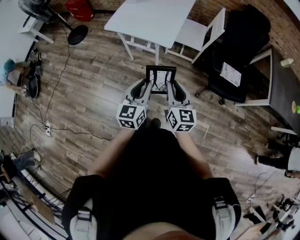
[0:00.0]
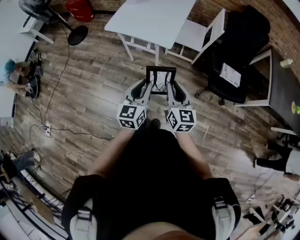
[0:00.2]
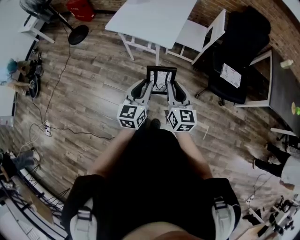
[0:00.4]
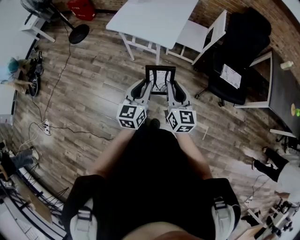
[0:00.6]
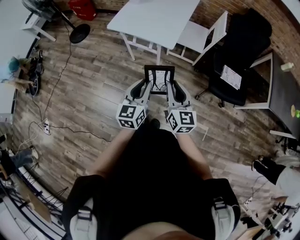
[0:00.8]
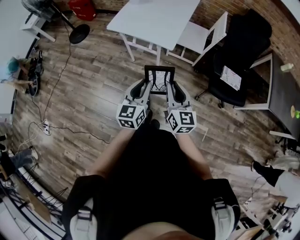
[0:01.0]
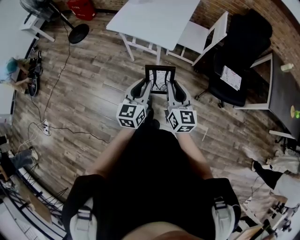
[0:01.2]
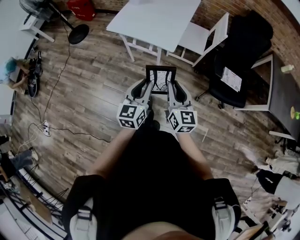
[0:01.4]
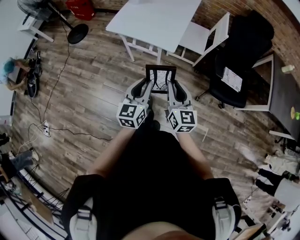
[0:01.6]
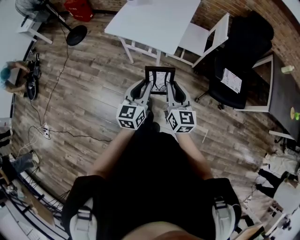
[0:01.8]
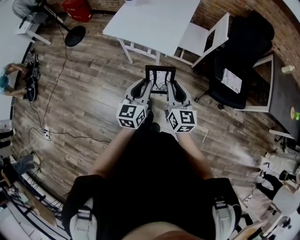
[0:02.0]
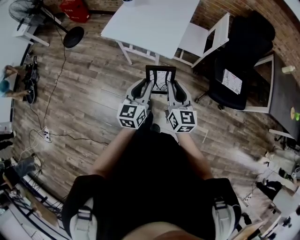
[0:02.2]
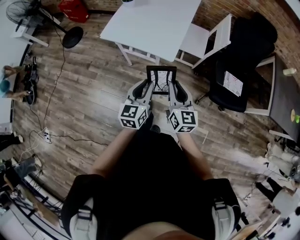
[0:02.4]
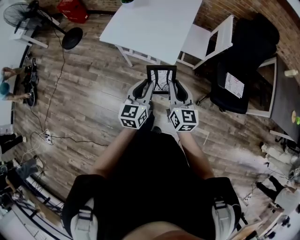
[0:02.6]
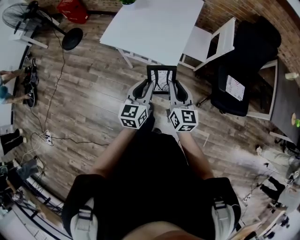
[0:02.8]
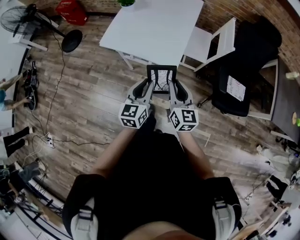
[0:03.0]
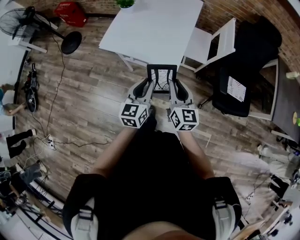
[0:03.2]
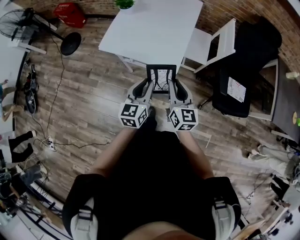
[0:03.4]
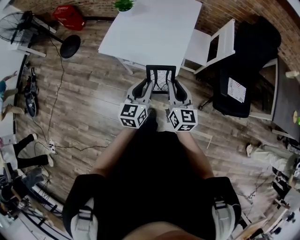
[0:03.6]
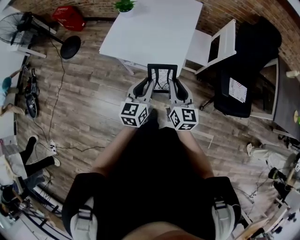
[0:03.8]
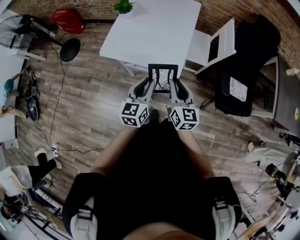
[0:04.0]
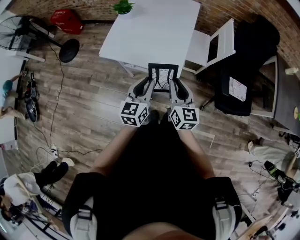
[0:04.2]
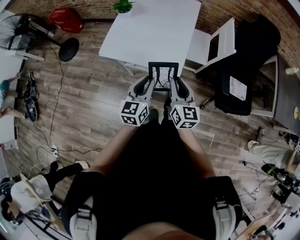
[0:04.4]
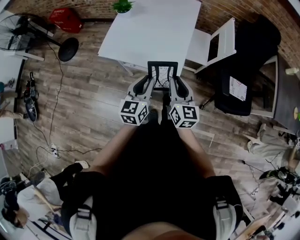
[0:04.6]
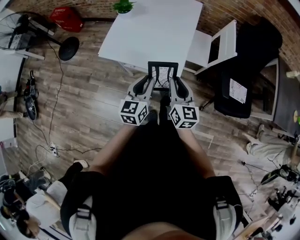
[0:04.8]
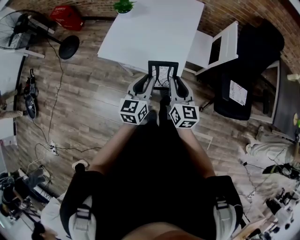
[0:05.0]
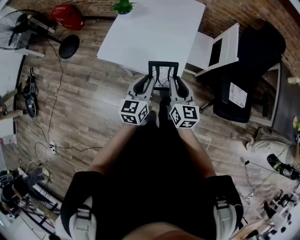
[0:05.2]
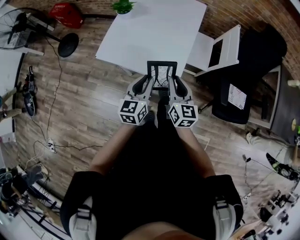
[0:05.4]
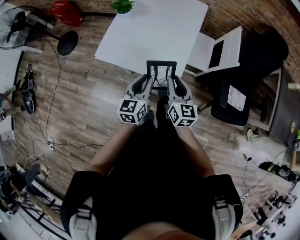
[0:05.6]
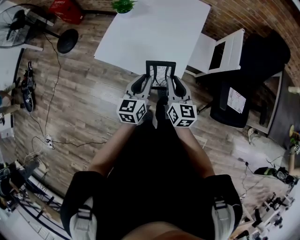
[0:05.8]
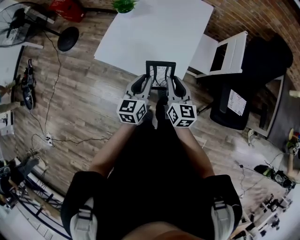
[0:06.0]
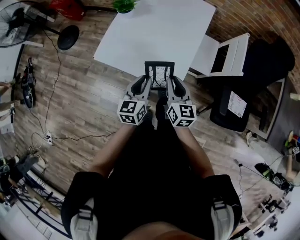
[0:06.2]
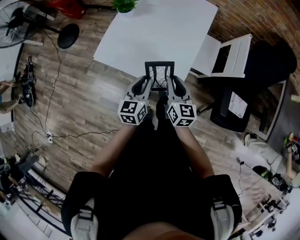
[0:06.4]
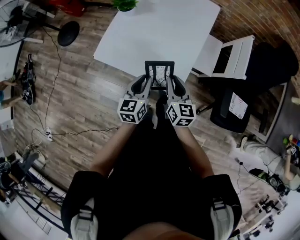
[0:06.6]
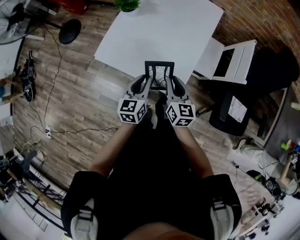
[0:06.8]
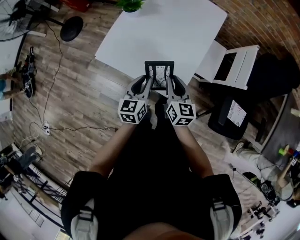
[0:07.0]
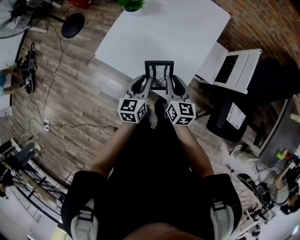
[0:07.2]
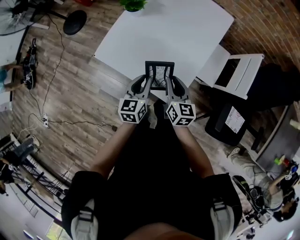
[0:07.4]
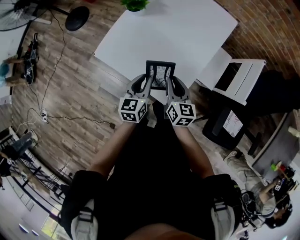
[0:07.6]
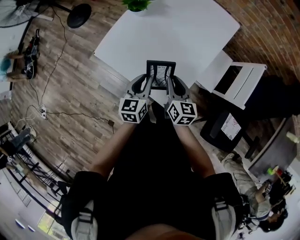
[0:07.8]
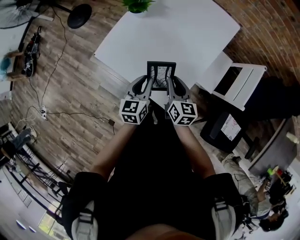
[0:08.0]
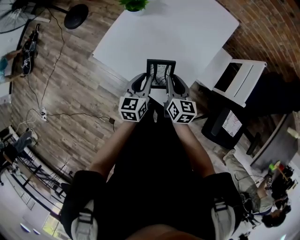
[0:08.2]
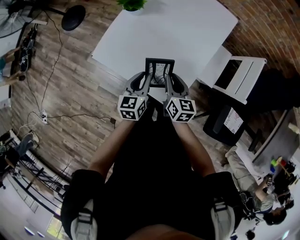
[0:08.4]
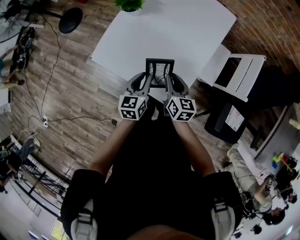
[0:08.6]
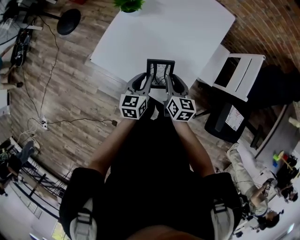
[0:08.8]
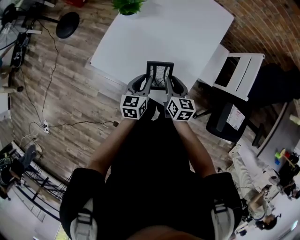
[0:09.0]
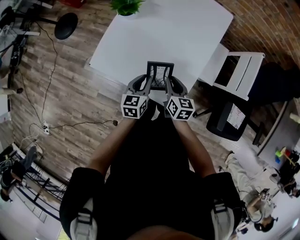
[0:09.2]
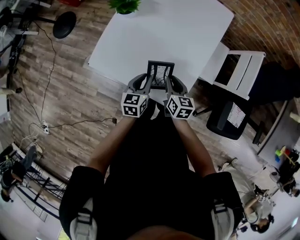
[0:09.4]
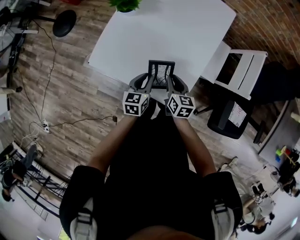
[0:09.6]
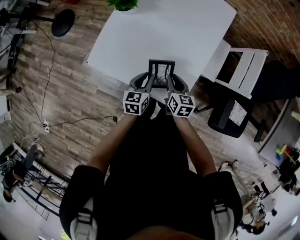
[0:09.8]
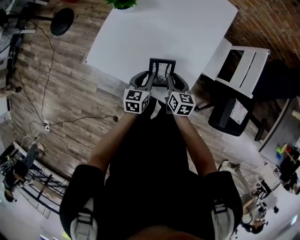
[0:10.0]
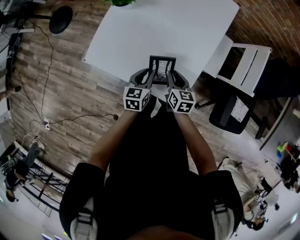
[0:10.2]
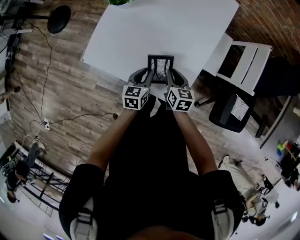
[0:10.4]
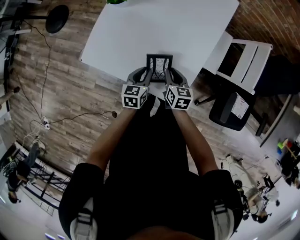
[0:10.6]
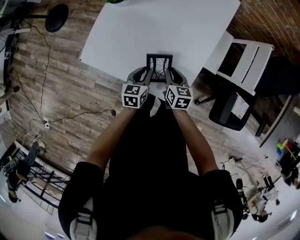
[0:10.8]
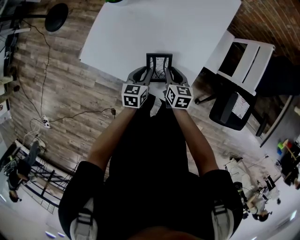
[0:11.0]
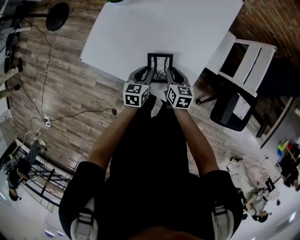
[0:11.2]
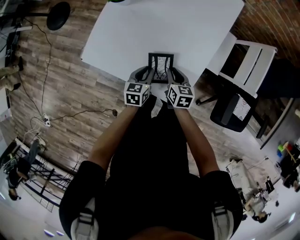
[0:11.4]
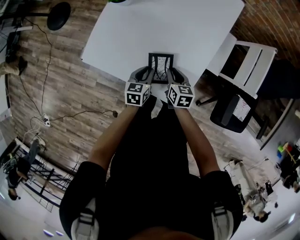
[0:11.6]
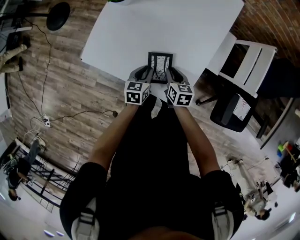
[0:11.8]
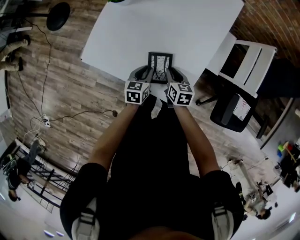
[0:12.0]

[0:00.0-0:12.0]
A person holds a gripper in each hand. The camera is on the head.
0:00.0 to 0:01.6: The grippers stay close to where they were, moving slightly.
0:01.6 to 0:03.0: Both grippers travel together forward, some 20 cm.
0:03.0 to 0:04.4: Both grippers travel together forward, roughly 5 cm.
0:04.4 to 0:06.0: Both grippers move forward, some 15 cm.
0:06.0 to 0:07.6: Both grippers move forward and downward, approximately 15 cm.
0:07.6 to 0:09.0: The left gripper ends up about 5 cm from where it was. Meanwhile the right gripper moves downward, about 5 cm.
0:09.0 to 0:10.4: The grippers both shift downward by roughly 10 cm.
0:10.4 to 0:12.0: The grippers both shift downward by roughly 5 cm.

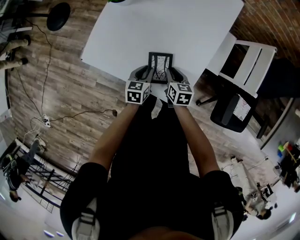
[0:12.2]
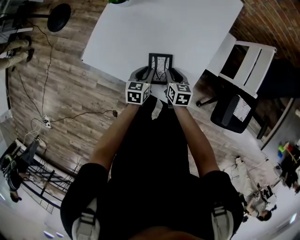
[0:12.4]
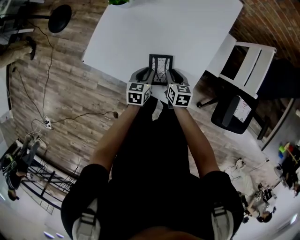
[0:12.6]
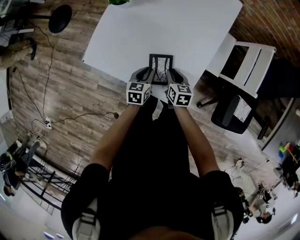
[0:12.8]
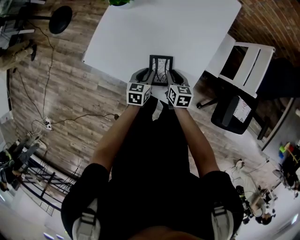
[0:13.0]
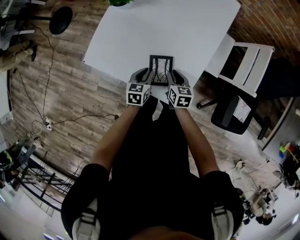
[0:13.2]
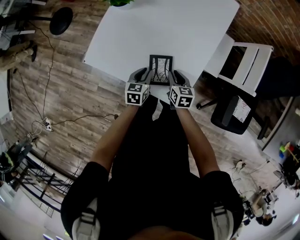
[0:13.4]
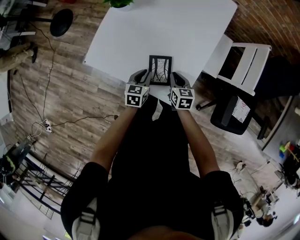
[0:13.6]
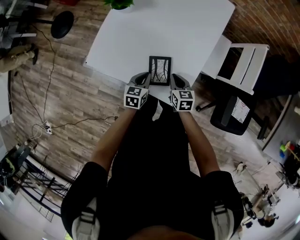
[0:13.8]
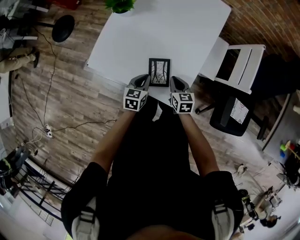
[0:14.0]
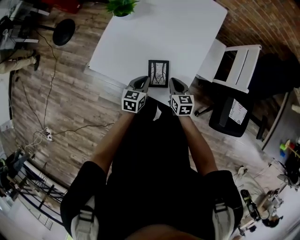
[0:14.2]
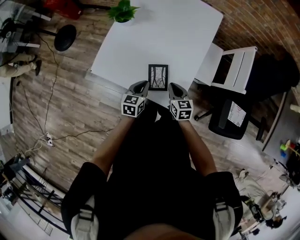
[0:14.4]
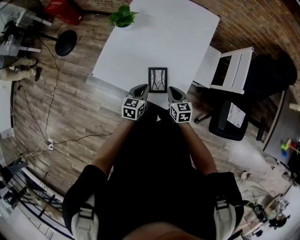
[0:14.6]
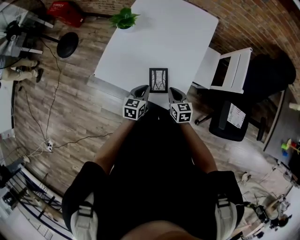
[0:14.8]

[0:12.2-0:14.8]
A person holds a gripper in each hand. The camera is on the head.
0:12.2 to 0:13.4: The grippers make only small movements.
0:13.4 to 0:14.8: Both grippers travel together upward and backward, roughly 10 cm.

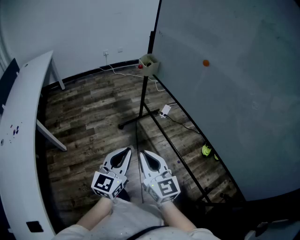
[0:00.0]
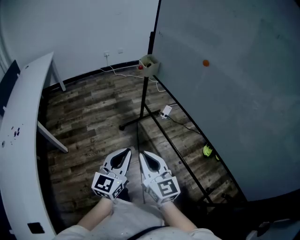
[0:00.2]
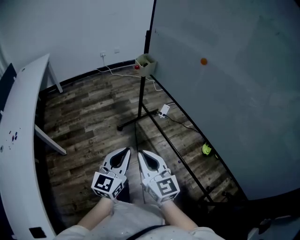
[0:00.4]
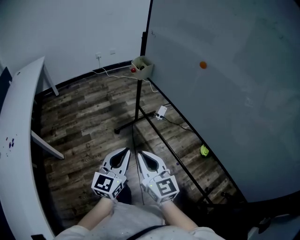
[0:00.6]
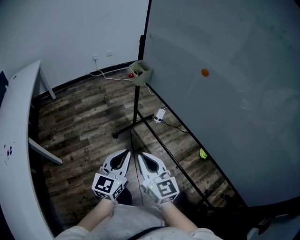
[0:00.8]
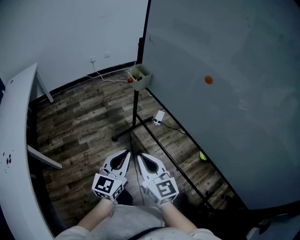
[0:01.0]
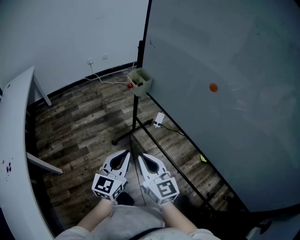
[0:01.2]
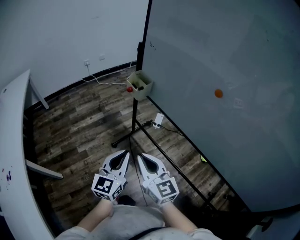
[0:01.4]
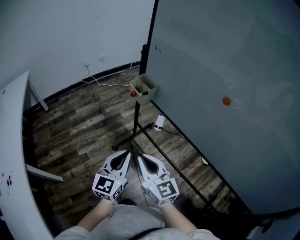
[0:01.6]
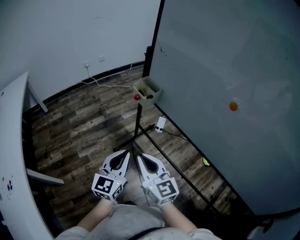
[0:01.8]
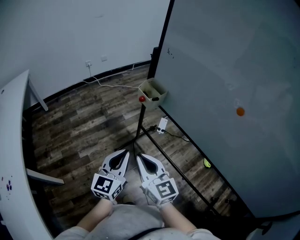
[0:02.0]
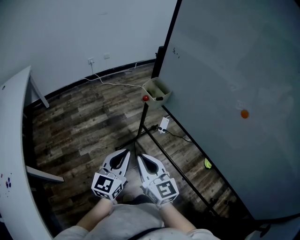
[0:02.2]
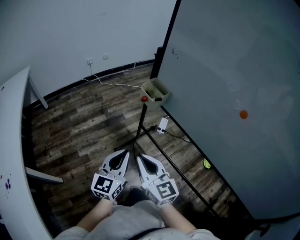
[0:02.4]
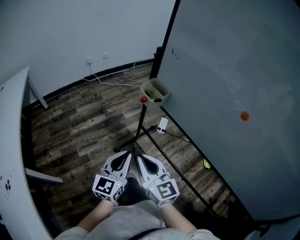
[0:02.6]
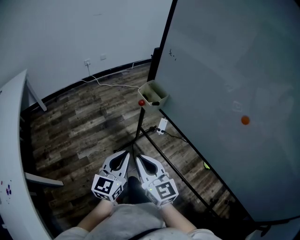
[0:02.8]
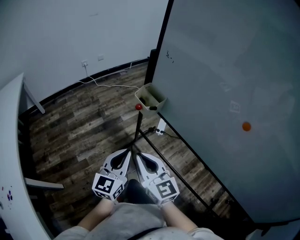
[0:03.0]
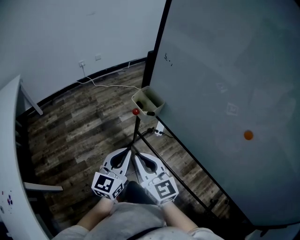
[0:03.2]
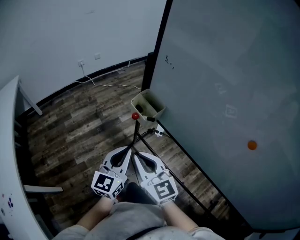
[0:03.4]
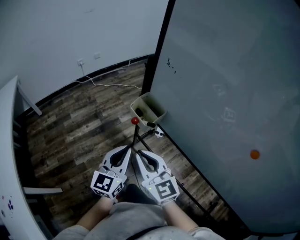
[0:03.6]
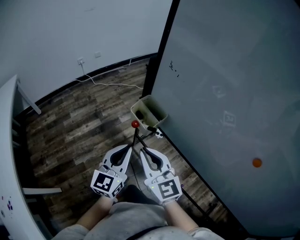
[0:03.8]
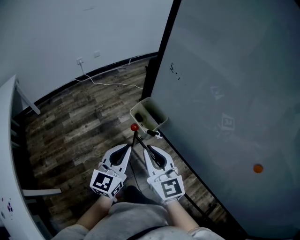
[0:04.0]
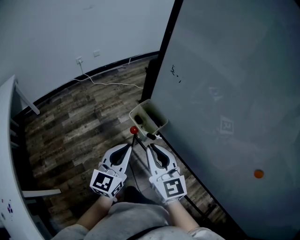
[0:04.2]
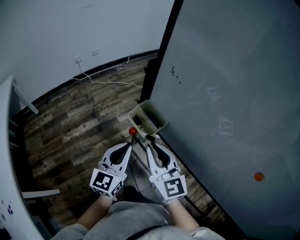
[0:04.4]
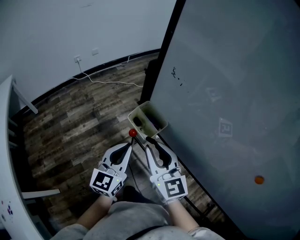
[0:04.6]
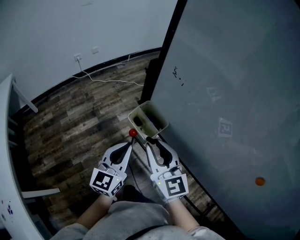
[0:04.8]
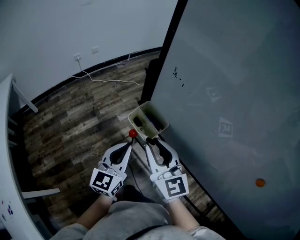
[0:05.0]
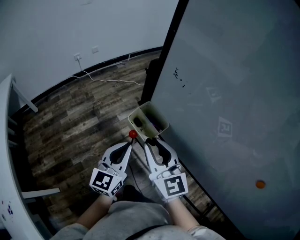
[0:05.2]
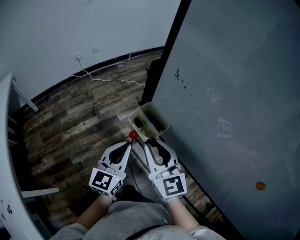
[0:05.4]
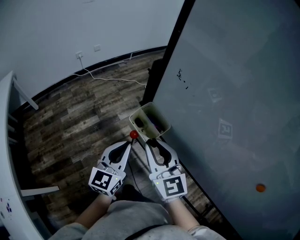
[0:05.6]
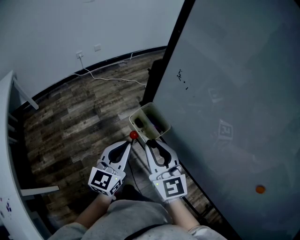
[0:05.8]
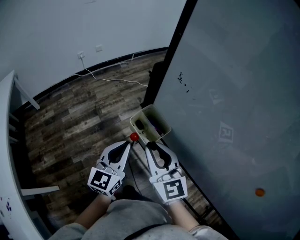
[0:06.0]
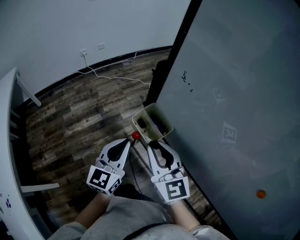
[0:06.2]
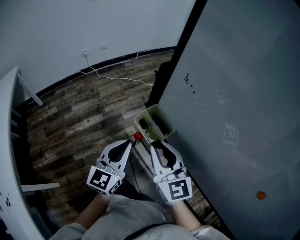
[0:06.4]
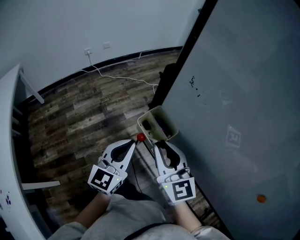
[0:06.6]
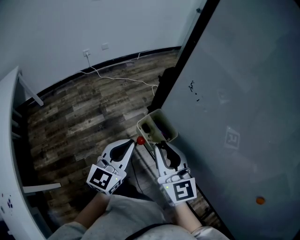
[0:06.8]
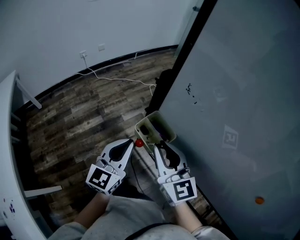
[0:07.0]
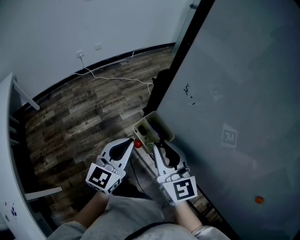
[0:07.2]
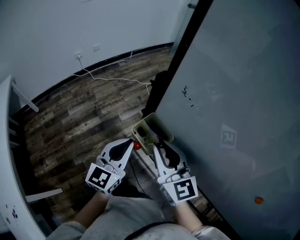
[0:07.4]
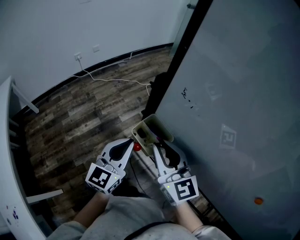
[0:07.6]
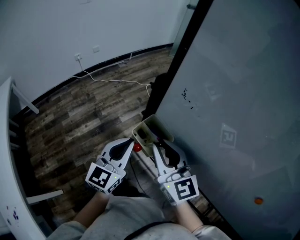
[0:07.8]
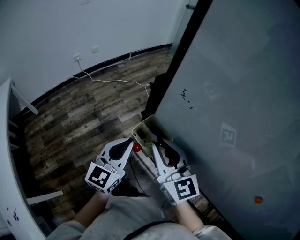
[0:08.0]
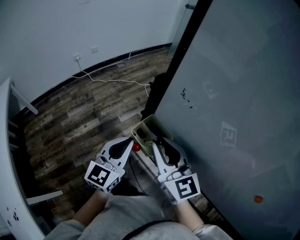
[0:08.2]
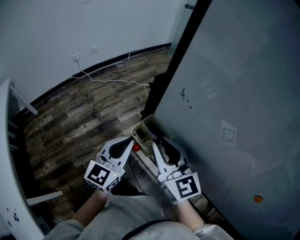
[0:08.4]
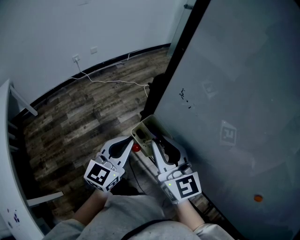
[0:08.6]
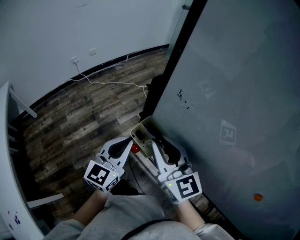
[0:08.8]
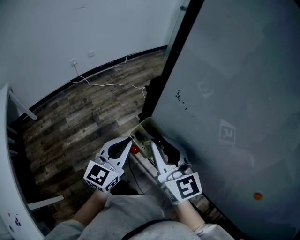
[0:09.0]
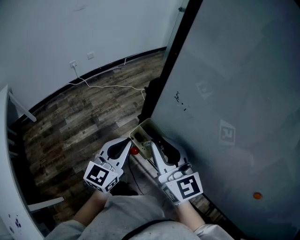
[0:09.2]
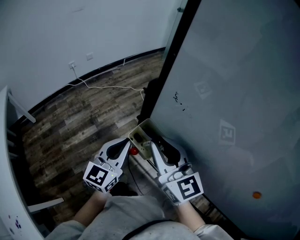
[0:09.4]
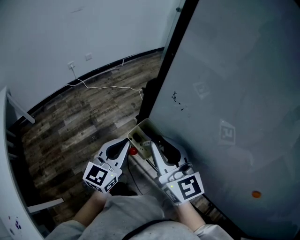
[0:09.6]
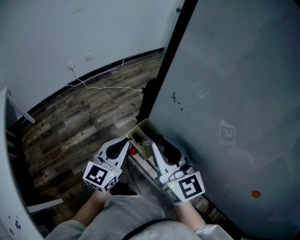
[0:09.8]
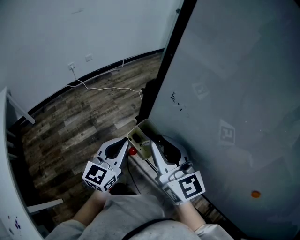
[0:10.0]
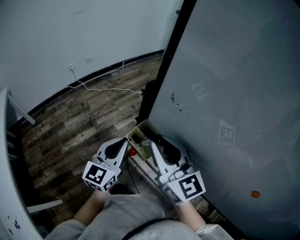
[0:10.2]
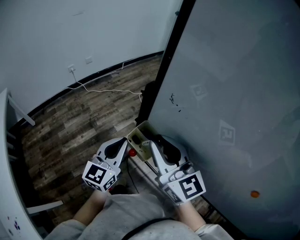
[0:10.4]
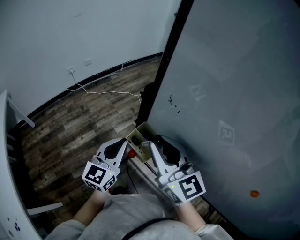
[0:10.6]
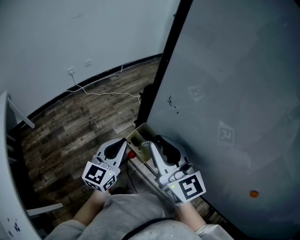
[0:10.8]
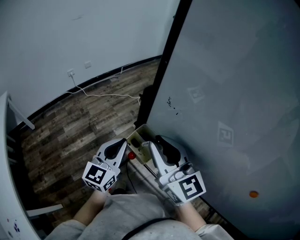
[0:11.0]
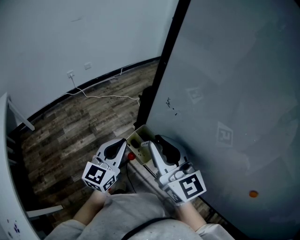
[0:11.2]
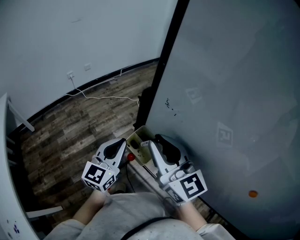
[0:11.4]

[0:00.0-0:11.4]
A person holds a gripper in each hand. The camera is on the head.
0:00.0 to 0:01.4: The two grippers go approximately 25 cm forward.
0:01.4 to 0:02.8: Both grippers travel together forward and to the left, some 15 cm.
0:02.8 to 0:04.2: Both grippers move forward, roughly 20 cm.
0:04.2 to 0:05.6: The grippers make only small movements.
0:05.6 to 0:07.2: The left gripper ends up approximately 5 cm from where it was.
0:07.2 to 0:08.6: The grippers make only small movements.
0:08.6 to 0:11.4: The grippers stay close to where they were, moving slightly.
